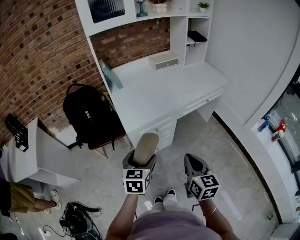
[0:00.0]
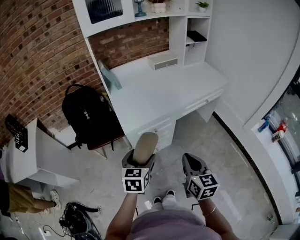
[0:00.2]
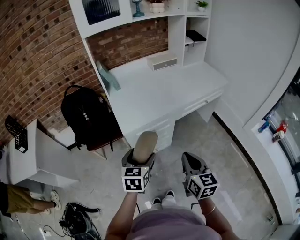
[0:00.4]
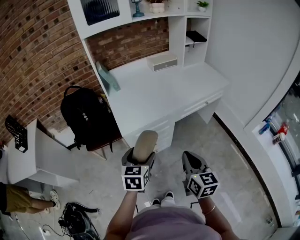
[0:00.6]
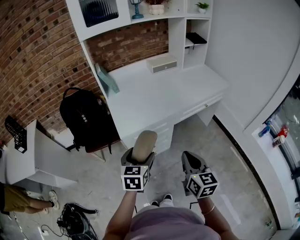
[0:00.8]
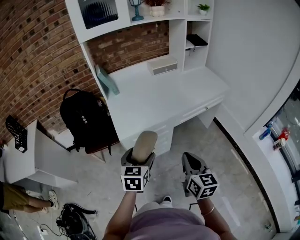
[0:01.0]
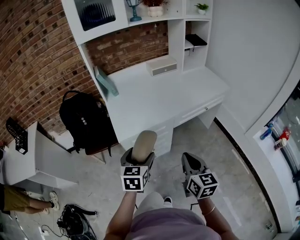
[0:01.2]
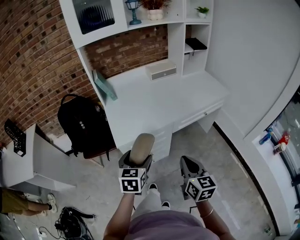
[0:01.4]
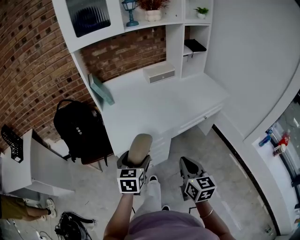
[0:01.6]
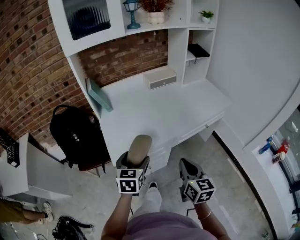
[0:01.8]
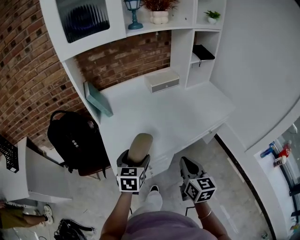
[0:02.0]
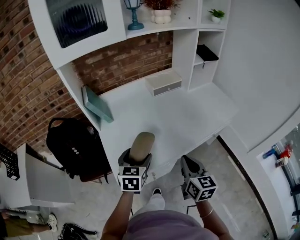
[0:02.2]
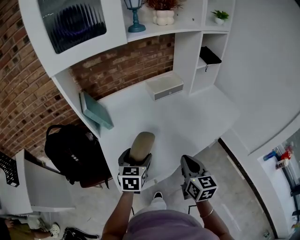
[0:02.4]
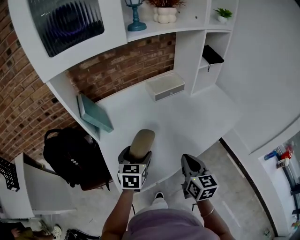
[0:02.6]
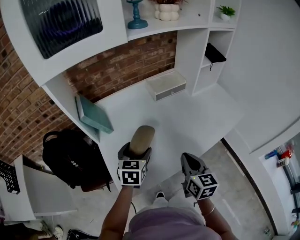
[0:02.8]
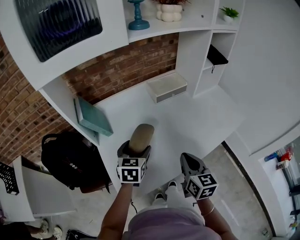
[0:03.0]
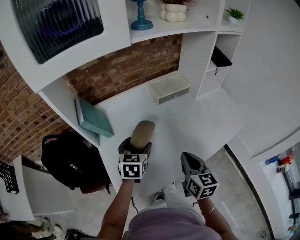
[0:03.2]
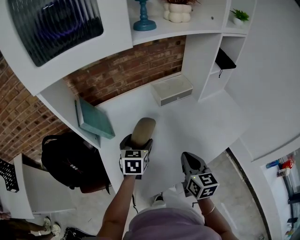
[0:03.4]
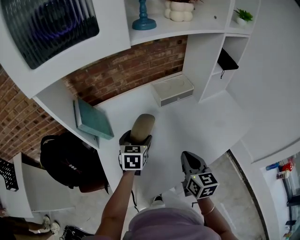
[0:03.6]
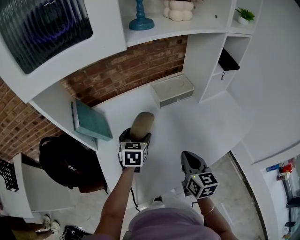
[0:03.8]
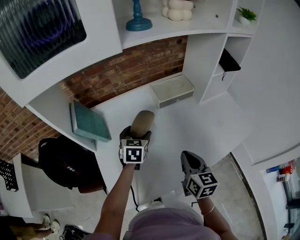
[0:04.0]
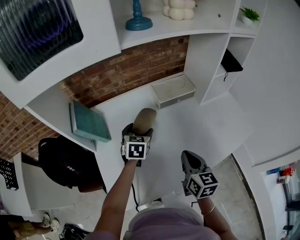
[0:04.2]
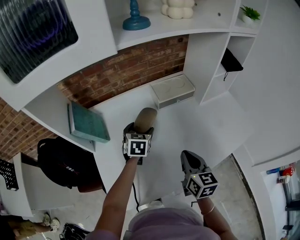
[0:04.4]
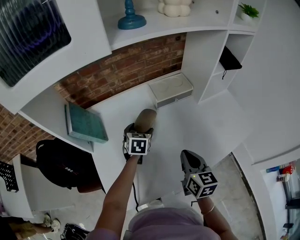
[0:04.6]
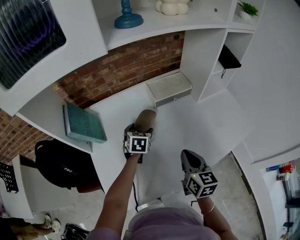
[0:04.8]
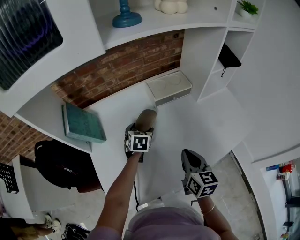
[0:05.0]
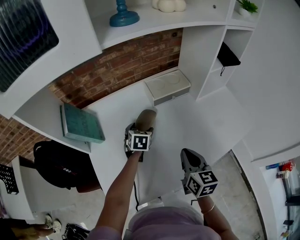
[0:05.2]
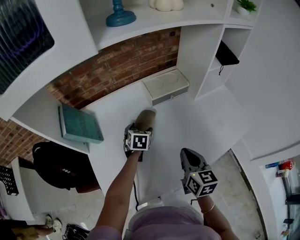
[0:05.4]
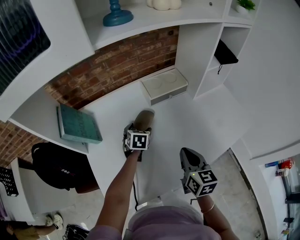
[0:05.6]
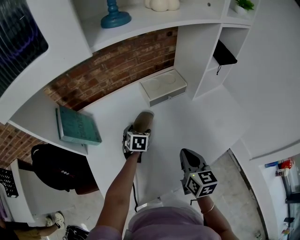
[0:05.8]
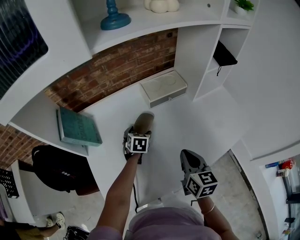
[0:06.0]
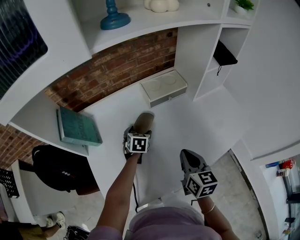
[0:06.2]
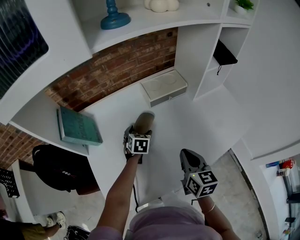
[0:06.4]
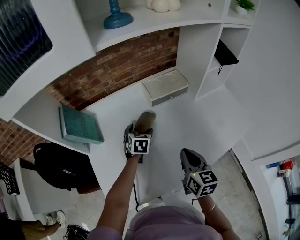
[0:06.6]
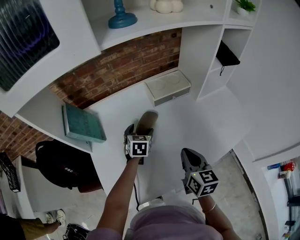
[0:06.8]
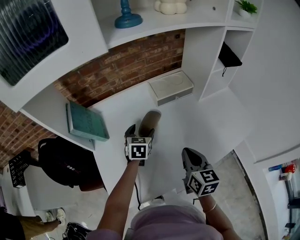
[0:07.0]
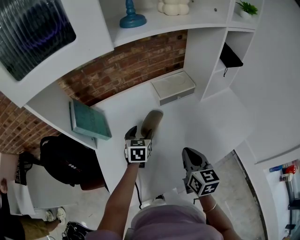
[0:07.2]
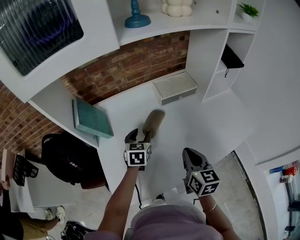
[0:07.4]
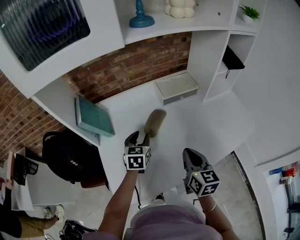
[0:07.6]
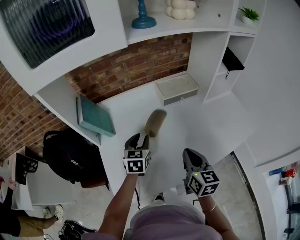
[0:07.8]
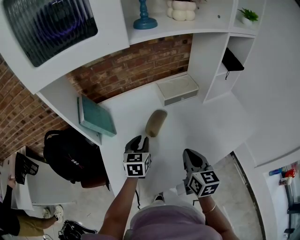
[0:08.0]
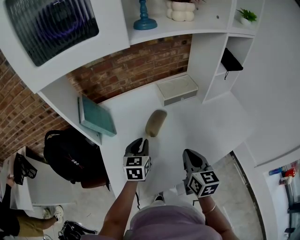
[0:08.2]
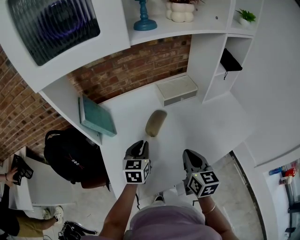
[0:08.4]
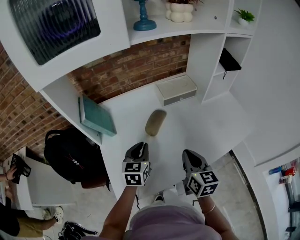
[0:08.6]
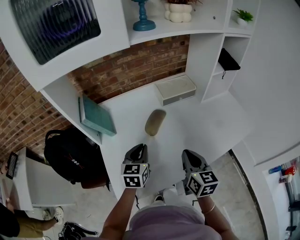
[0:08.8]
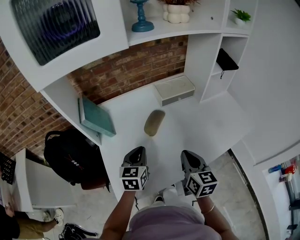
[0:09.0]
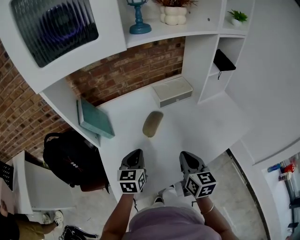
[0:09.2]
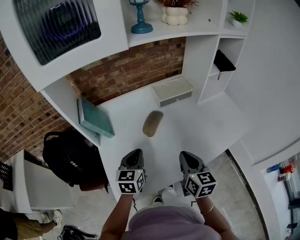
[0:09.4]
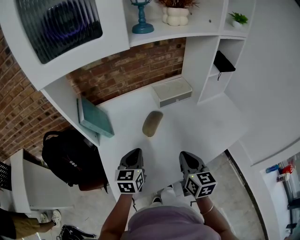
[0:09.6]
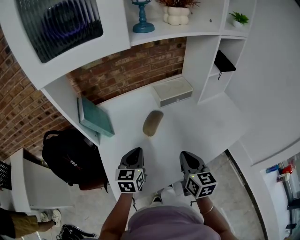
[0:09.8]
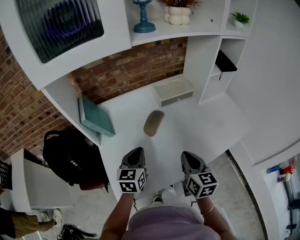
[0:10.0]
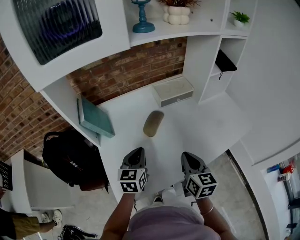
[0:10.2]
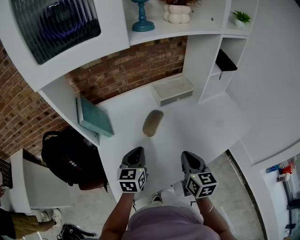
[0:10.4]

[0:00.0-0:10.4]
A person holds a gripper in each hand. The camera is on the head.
0:00.0 to 0:01.4: The two grippers go about 10 cm forward and to the right.
0:01.4 to 0:03.0: The two grippers go about 35 cm forward.
0:03.0 to 0:04.4: The right gripper goes about 10 cm forward. Meanwhile the left gripper heads forward, covering roughly 15 cm.
0:04.4 to 0:06.0: The left gripper goes some 10 cm downward.
0:06.0 to 0:07.4: The left gripper travels upward and backward by about 10 cm, and closes its fingers.
0:07.4 to 0:09.0: The left gripper goes approximately 10 cm backward, and closes.
0:09.0 to 0:10.4: The grippers make only small movements.

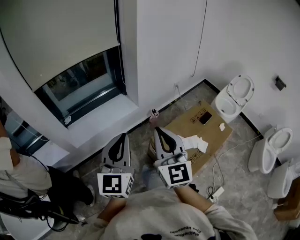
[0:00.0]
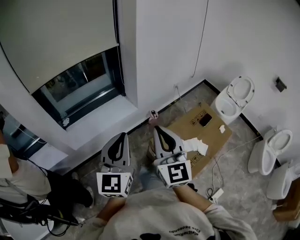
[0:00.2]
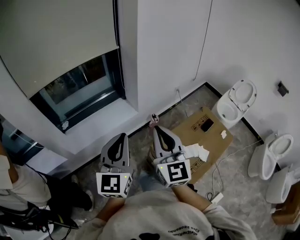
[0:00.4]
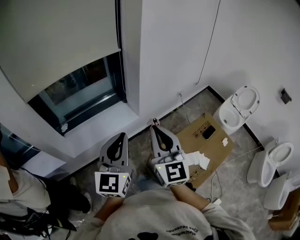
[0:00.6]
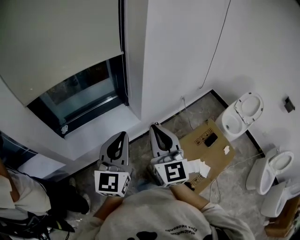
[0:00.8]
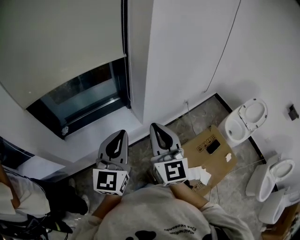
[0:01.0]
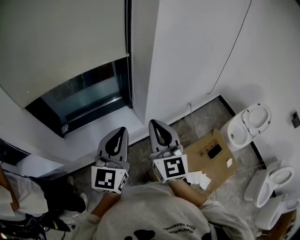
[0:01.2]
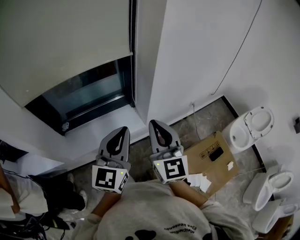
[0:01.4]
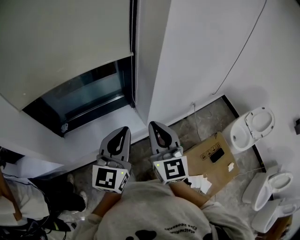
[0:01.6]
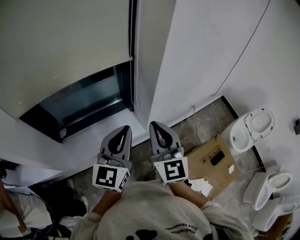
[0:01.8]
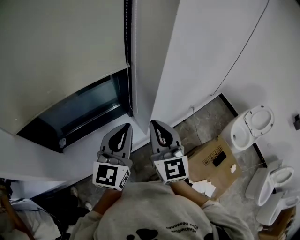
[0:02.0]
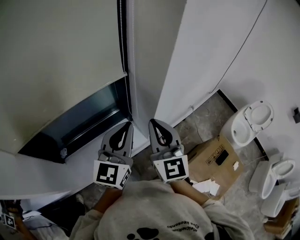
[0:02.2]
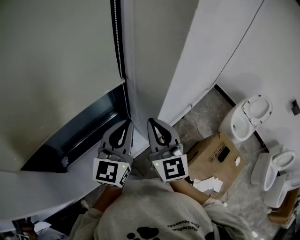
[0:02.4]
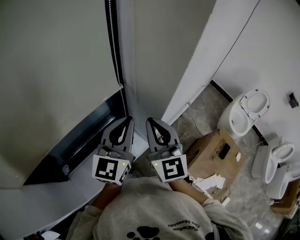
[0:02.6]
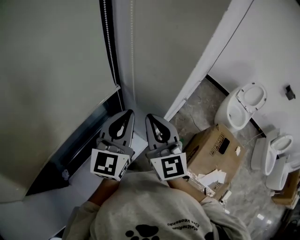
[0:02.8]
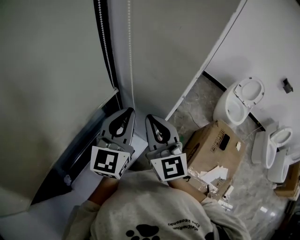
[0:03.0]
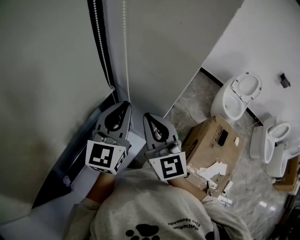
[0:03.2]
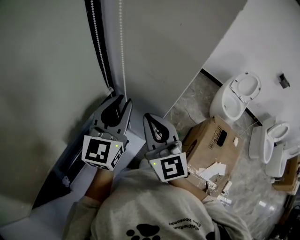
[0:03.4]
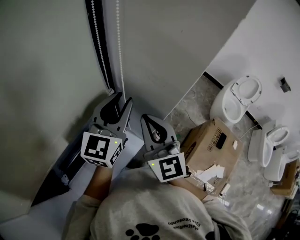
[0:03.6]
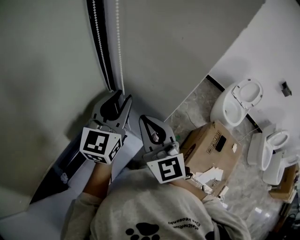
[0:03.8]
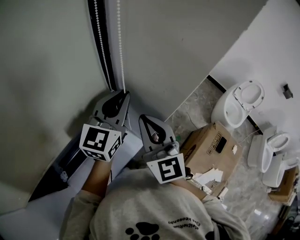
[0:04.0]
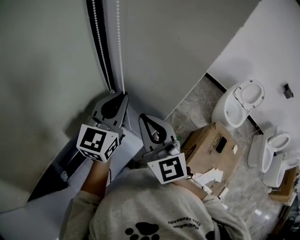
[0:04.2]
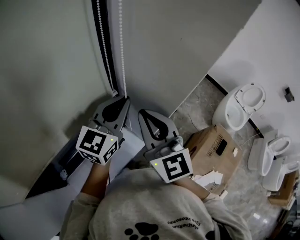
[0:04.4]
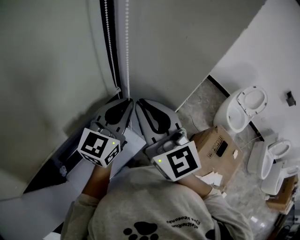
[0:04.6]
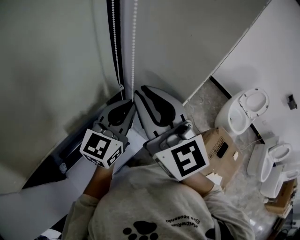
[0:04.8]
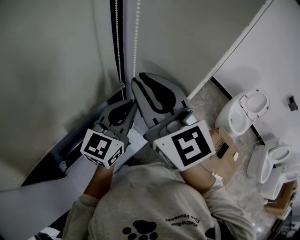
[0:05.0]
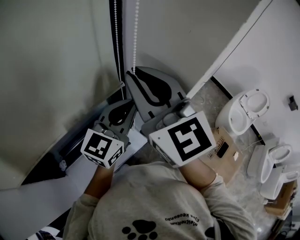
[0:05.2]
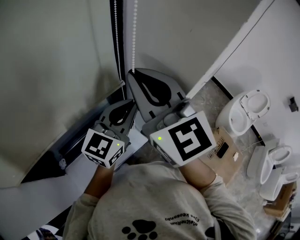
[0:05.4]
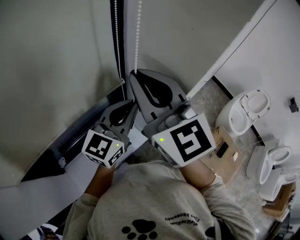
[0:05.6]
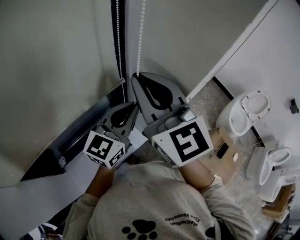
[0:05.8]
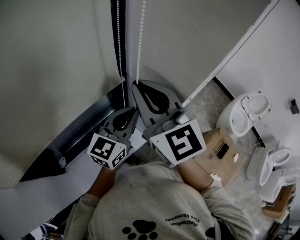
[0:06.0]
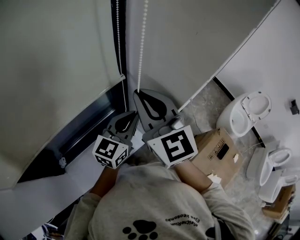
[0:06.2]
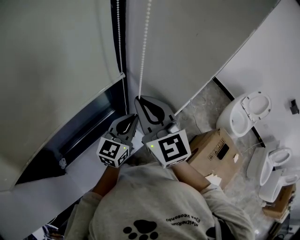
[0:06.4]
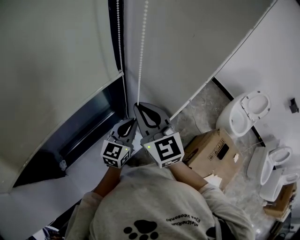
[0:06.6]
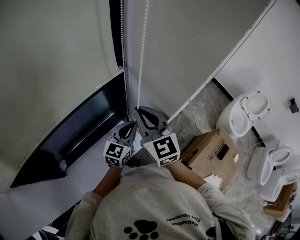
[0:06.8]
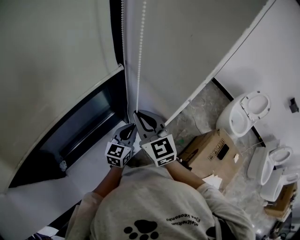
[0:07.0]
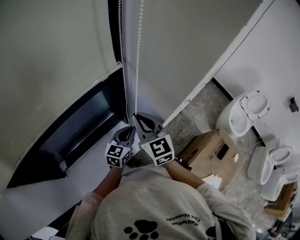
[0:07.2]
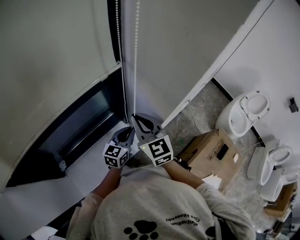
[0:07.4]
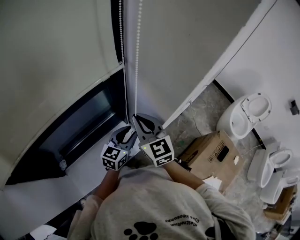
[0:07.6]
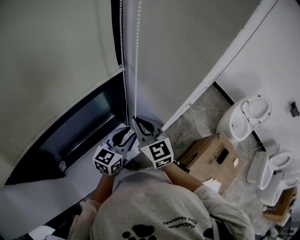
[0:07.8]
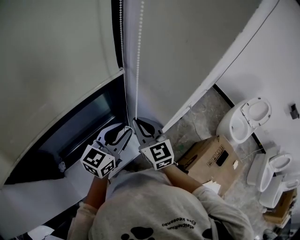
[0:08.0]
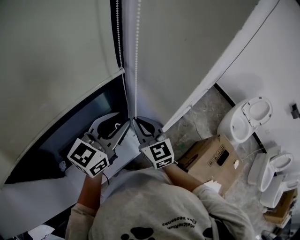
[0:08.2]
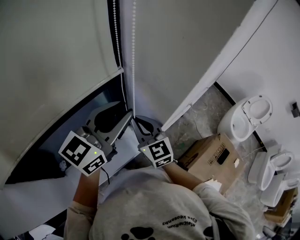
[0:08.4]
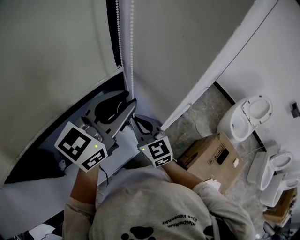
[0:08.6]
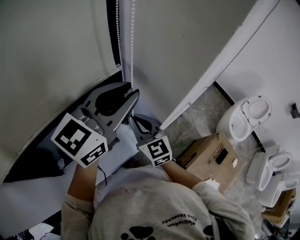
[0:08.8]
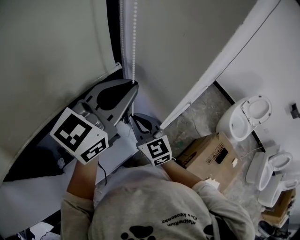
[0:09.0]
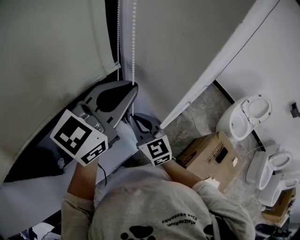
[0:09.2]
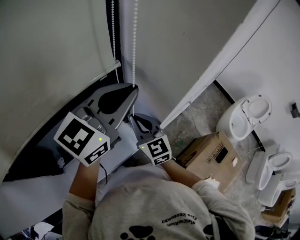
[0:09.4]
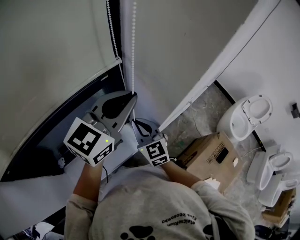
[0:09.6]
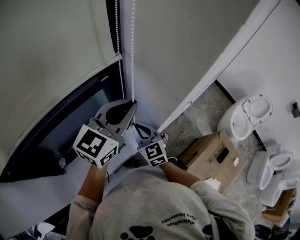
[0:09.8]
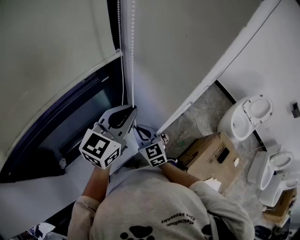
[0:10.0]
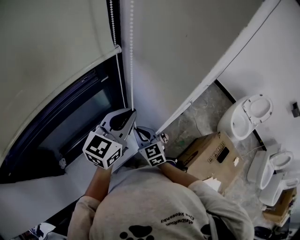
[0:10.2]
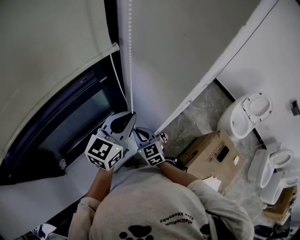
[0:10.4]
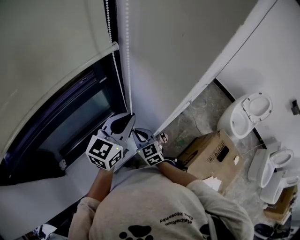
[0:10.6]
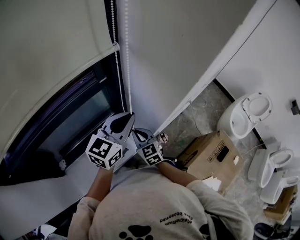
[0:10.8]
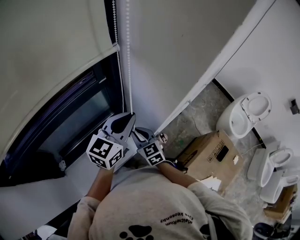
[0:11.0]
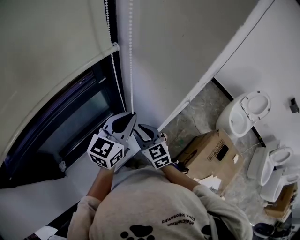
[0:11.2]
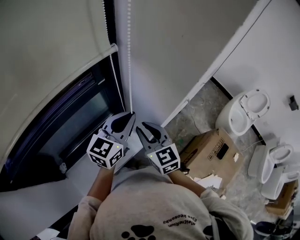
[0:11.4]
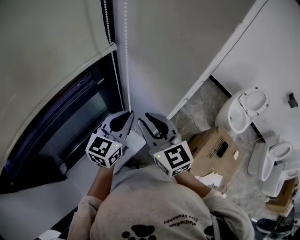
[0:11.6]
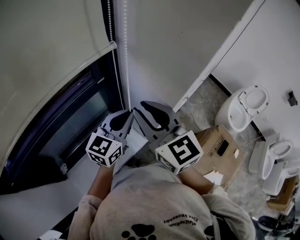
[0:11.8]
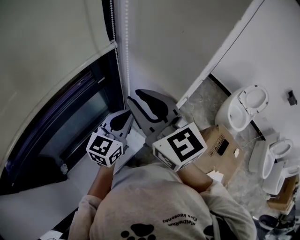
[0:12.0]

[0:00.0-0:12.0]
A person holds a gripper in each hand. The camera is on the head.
0:00.0 to 0:01.6: Both grippers move forward, roughly 35 cm.
0:01.6 to 0:03.0: The right gripper ends up approximately 25 cm from where it was, and changes its angle by roughly 20 degrees. The left gripper changes place by approximately 30 cm, and swivels about 30 degrees.
0:03.0 to 0:04.4: The right gripper changes place by some 5 cm; the left gripper opens, then closes once more.
0:04.4 to 0:06.0: The left gripper shifts by approximately 5 cm, while the right gripper shifts some 5 cm upward.
0:06.0 to 0:07.6: The grippers both shift downward by approximately 20 cm. The left gripper opens up.
0:07.6 to 0:09.0: The left gripper is displaced upward by roughly 30 cm, rotates some 20 degrees, and closes its fingers.
0:09.0 to 0:10.4: Both grippers move downward, some 15 cm.
0:10.4 to 0:12.0: The right gripper moves upward, some 35 cm, changes its angle by roughly 20 degrees, and opens.

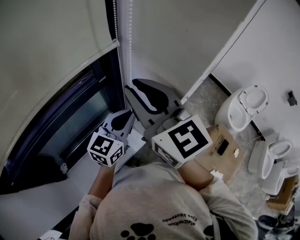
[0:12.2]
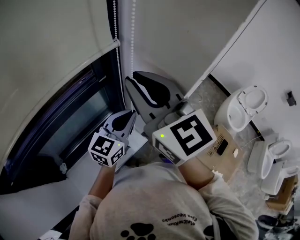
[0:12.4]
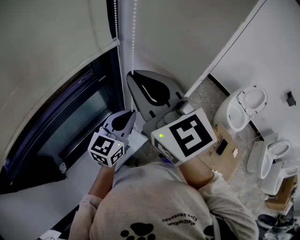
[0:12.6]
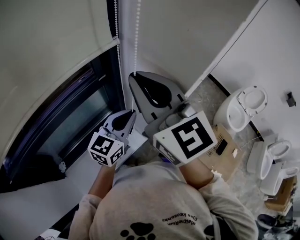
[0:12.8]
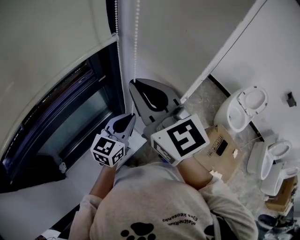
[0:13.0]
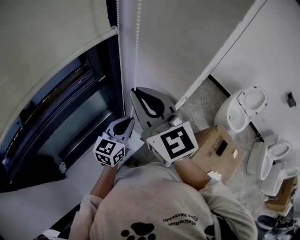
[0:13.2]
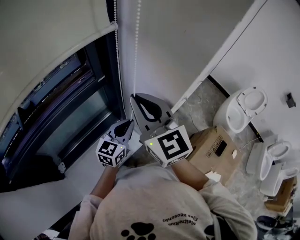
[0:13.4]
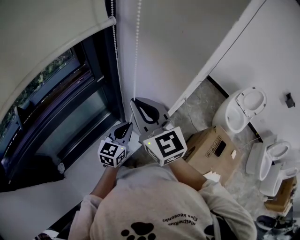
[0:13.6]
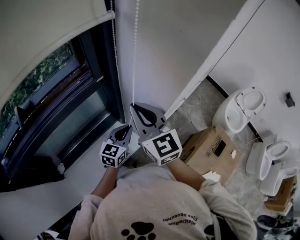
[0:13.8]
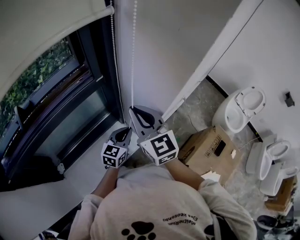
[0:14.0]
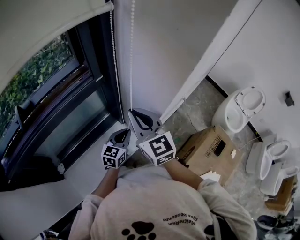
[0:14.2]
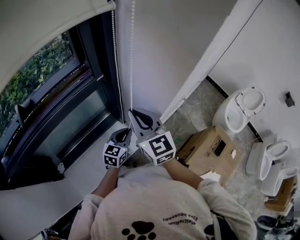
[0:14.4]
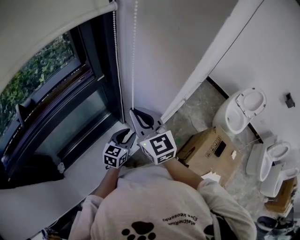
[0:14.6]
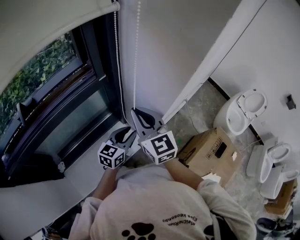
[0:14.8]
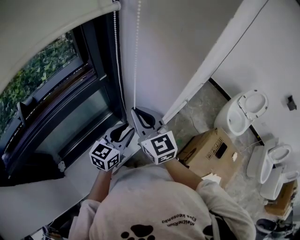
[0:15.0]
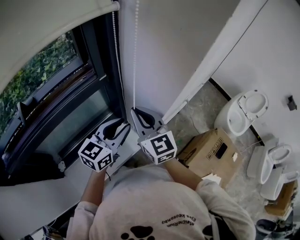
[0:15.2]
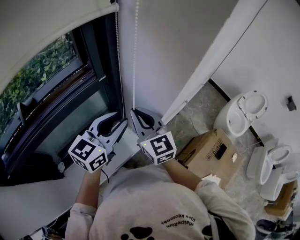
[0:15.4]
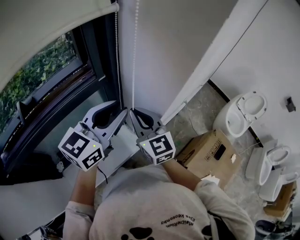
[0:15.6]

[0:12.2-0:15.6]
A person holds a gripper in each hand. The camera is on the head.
0:12.2 to 0:13.8: Both grippers move downward, about 15 cm.
0:13.8 to 0:15.6: The left gripper is displaced upward by roughly 25 cm, and opens its fingers.
